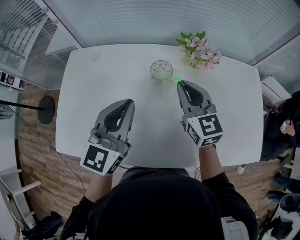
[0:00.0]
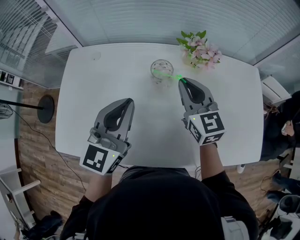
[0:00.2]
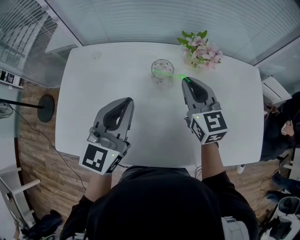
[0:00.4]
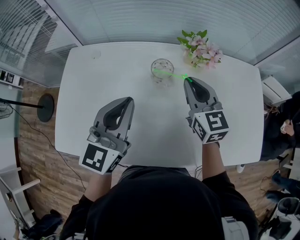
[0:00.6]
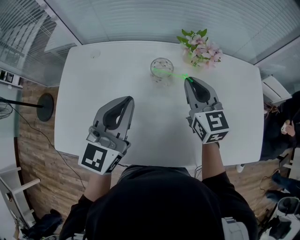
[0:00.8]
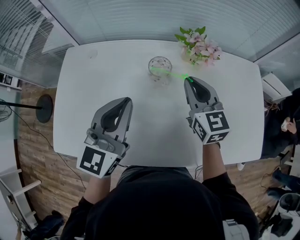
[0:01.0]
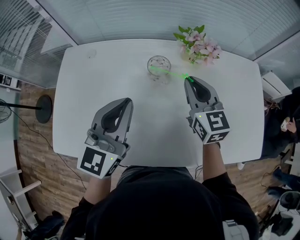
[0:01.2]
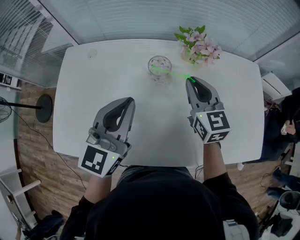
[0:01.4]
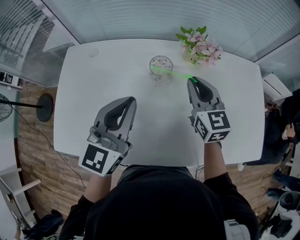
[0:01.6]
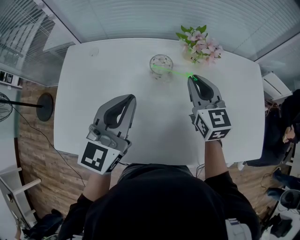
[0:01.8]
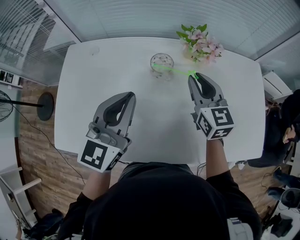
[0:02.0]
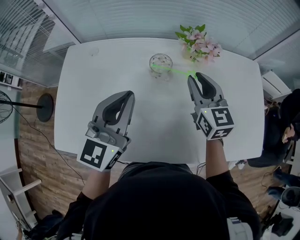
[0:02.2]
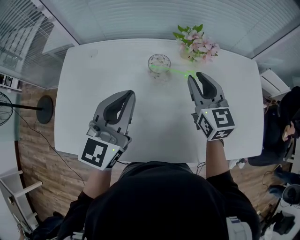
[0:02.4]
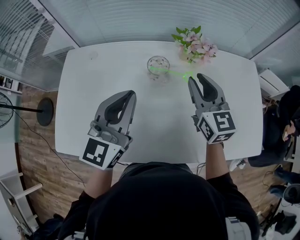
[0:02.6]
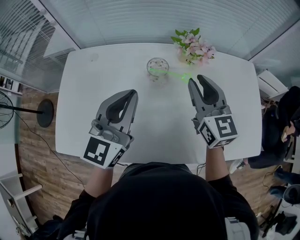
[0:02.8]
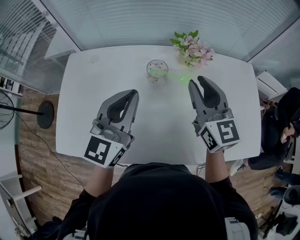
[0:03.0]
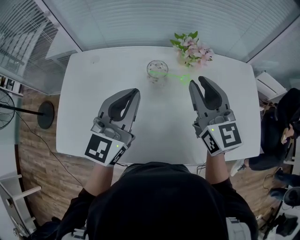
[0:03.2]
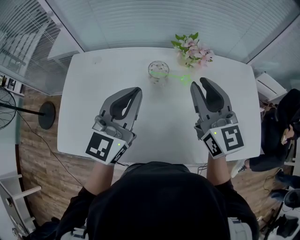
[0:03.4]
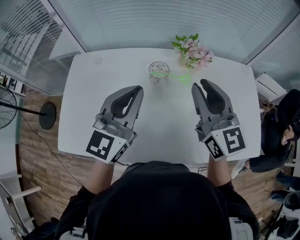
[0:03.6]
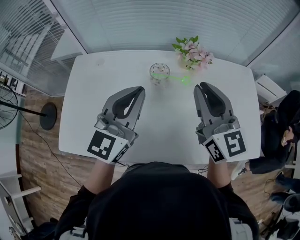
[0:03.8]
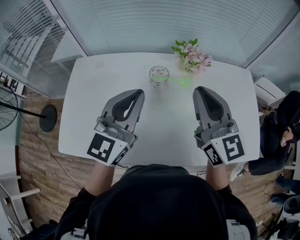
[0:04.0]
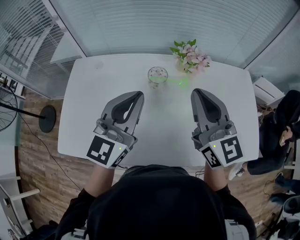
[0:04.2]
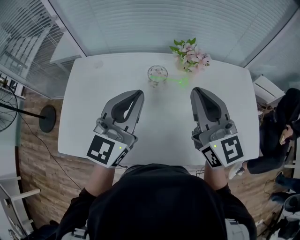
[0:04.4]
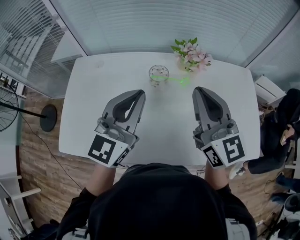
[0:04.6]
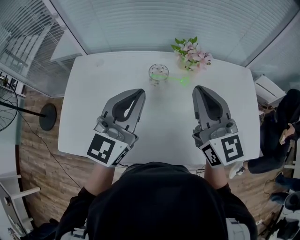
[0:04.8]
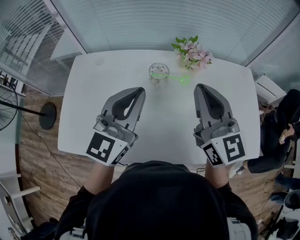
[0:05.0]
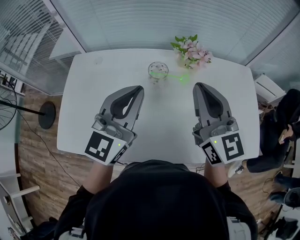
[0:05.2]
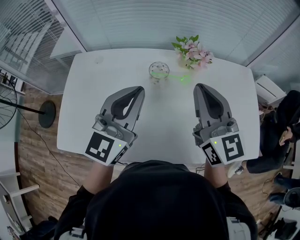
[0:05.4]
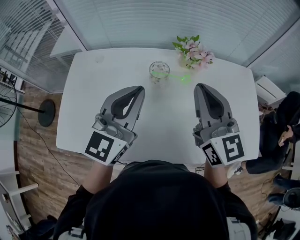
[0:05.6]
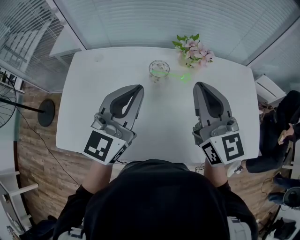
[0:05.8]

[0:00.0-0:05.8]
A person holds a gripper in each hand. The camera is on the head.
0:00.0 to 0:01.4: There are only small adjustments of the grippers.
0:01.4 to 0:02.8: The right gripper heads upward, covering some 5 cm.
0:02.8 to 0:04.4: The right gripper goes some 10 cm upward and backward, and closes its fingers.
0:04.4 to 0:05.8: The two grippers keep their place.

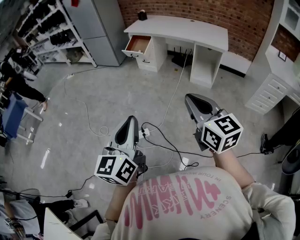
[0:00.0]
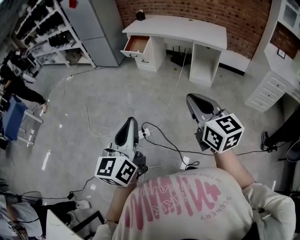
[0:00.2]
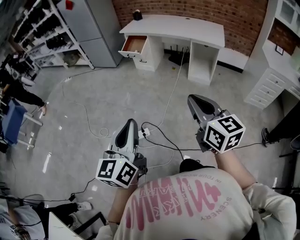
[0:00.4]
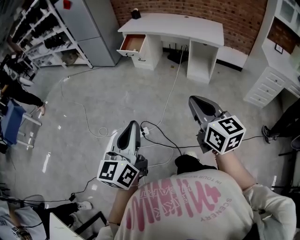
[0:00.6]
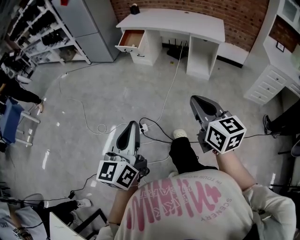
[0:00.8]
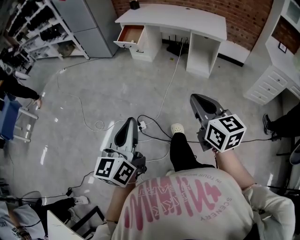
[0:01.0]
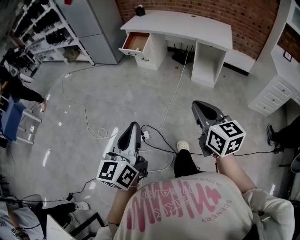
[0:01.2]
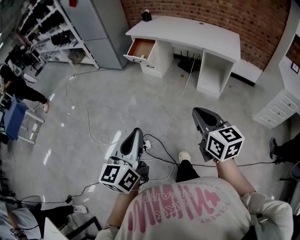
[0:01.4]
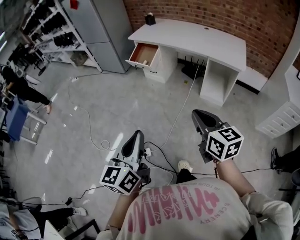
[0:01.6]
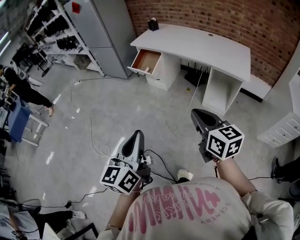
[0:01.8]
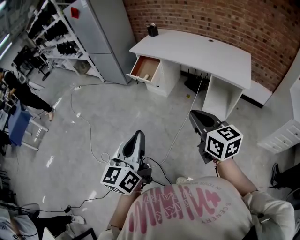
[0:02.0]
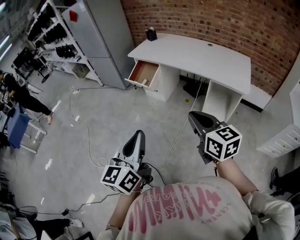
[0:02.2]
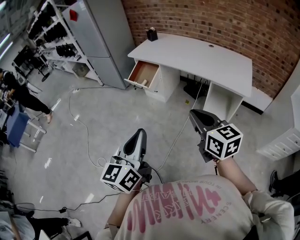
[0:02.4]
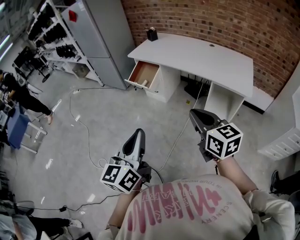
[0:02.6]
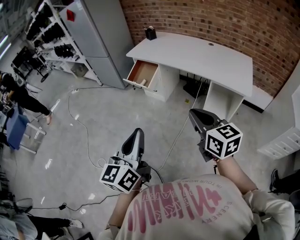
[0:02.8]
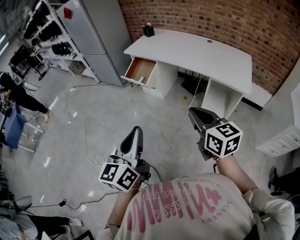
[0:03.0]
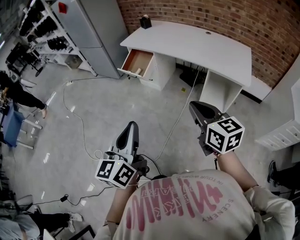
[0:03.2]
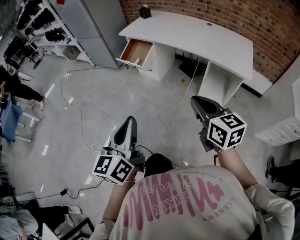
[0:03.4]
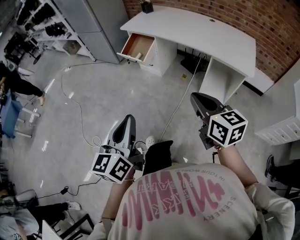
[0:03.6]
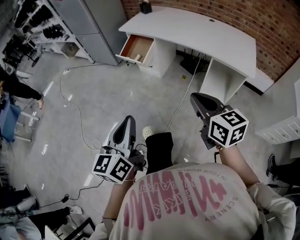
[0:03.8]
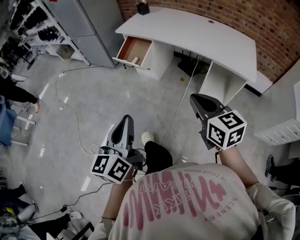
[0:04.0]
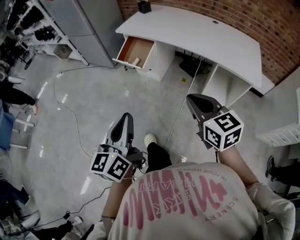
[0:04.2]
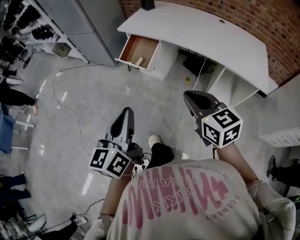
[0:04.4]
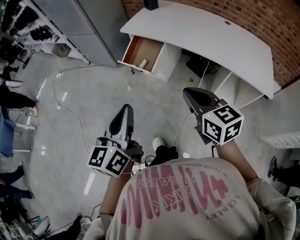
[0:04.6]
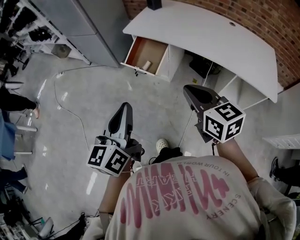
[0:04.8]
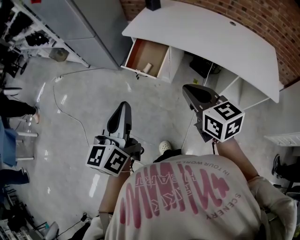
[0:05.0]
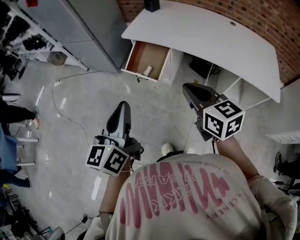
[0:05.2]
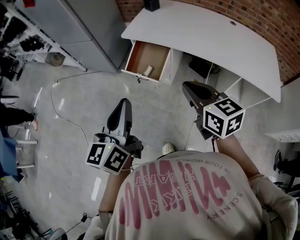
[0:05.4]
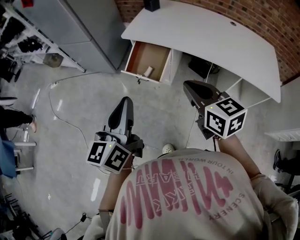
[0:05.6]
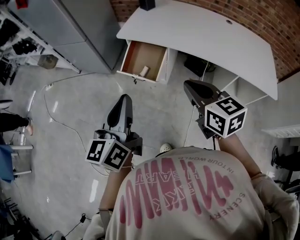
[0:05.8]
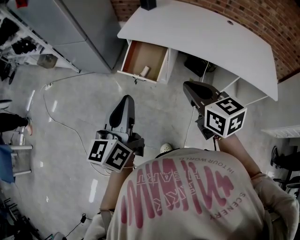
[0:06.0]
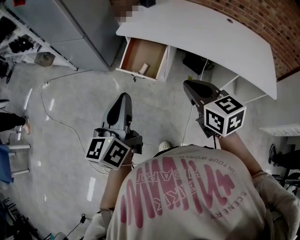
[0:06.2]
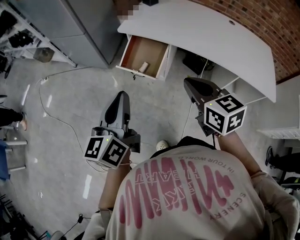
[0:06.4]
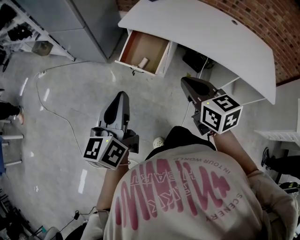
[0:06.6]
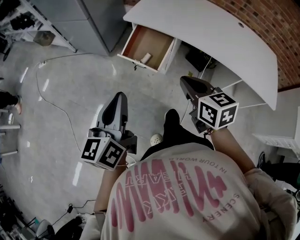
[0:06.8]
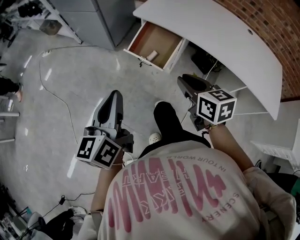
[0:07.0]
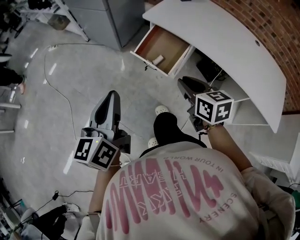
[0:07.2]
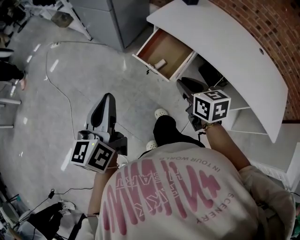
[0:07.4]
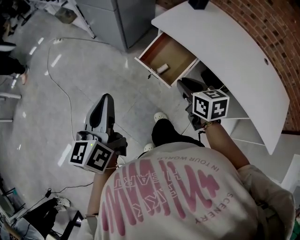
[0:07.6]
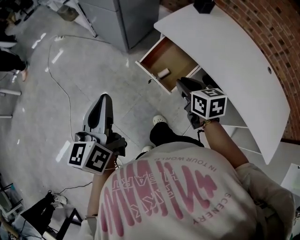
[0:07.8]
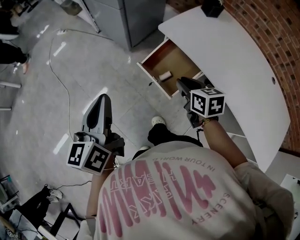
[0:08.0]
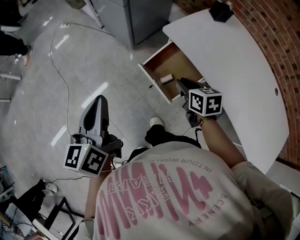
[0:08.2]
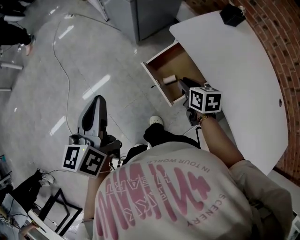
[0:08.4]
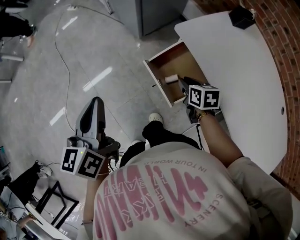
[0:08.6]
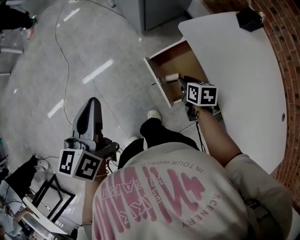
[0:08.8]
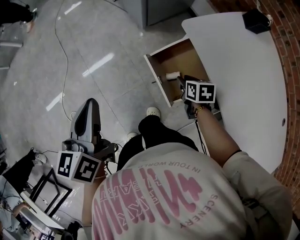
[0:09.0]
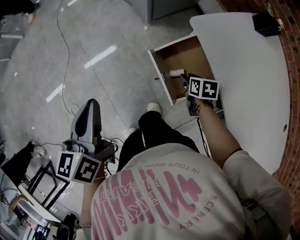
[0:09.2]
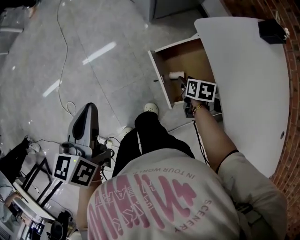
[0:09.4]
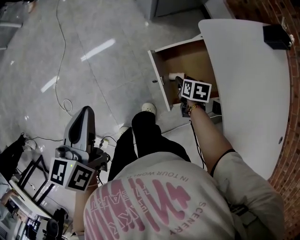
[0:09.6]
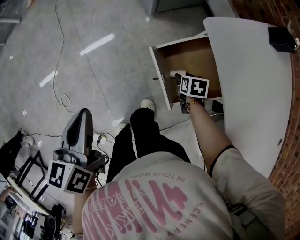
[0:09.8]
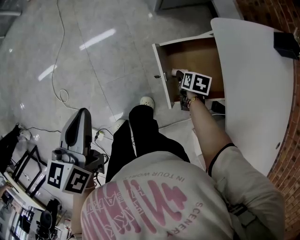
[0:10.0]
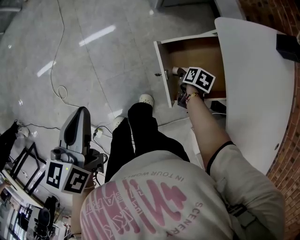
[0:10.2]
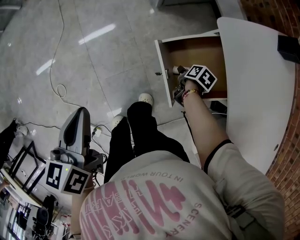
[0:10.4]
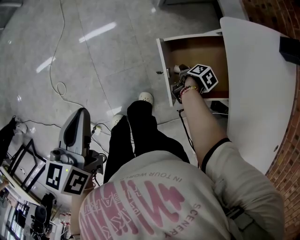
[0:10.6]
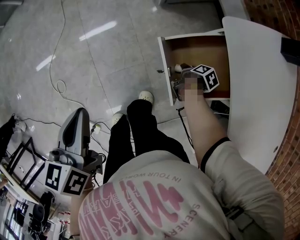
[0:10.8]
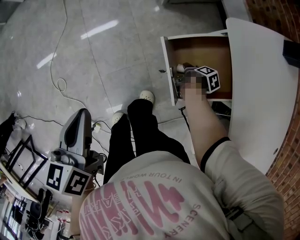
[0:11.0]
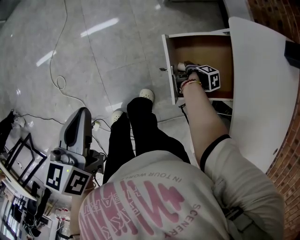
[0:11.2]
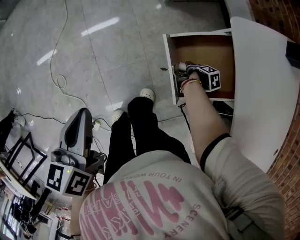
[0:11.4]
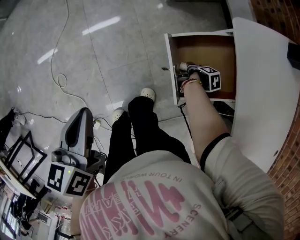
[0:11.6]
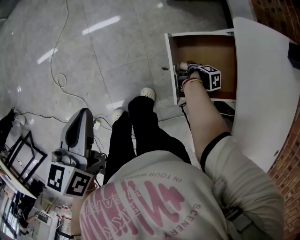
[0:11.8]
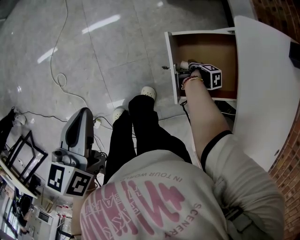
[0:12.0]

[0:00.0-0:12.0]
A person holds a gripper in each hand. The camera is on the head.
0:00.0 to 0:01.6: The grippers both shift forward by roughly 20 cm.
0:01.6 to 0:03.0: The right gripper is displaced forward by approximately 20 cm. The left gripper travels forward and to the right by about 20 cm.
0:03.0 to 0:04.4: Both grippers move forward and to the left, some 20 cm.
0:04.4 to 0:06.0: The grippers both shift forward and to the left by about 25 cm.
0:06.0 to 0:07.6: The left gripper travels to the left and forward by about 10 cm, and rotates some 30 degrees; the right gripper goes roughly 20 cm forward and downward.
0:07.6 to 0:09.0: The right gripper shifts some 30 cm downward and forward, and changes its angle by approximately 30 degrees. Meanwhile the left gripper is displaced forward and downward by approximately 15 cm, and changes its angle by roughly 30 degrees.
0:09.0 to 0:10.4: The right gripper shifts approximately 15 cm downward, swivels approximately 30 degrees, and opens its fingers. The left gripper heads downward, covering roughly 10 cm.
0:10.4 to 0:12.0: The right gripper changes place by roughly 5 cm, and turns by roughly 40 degrees.

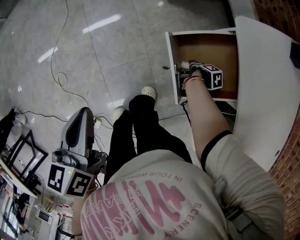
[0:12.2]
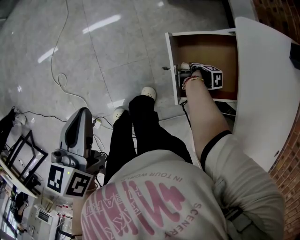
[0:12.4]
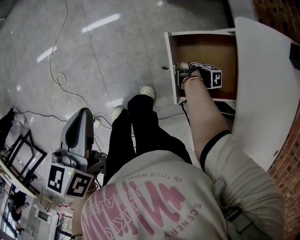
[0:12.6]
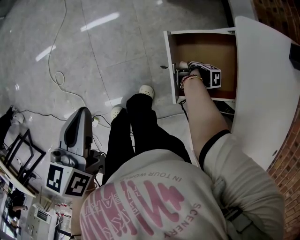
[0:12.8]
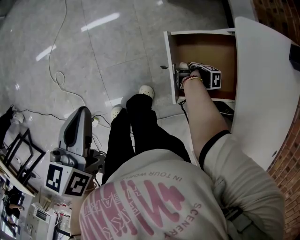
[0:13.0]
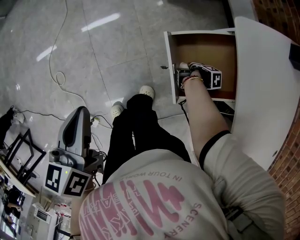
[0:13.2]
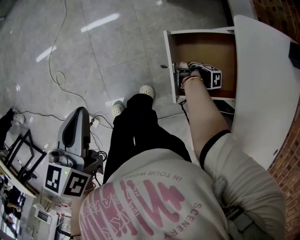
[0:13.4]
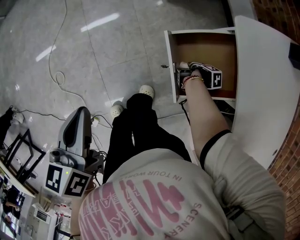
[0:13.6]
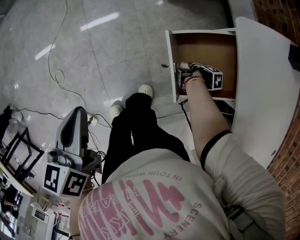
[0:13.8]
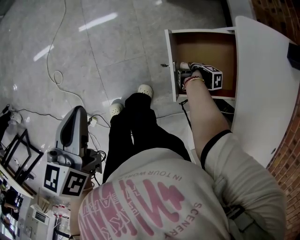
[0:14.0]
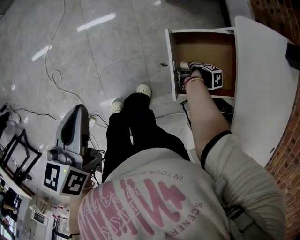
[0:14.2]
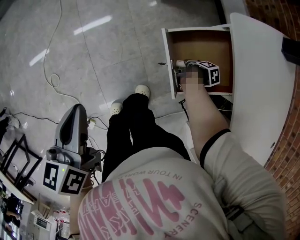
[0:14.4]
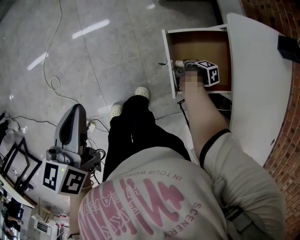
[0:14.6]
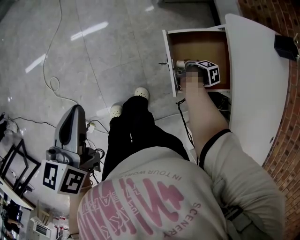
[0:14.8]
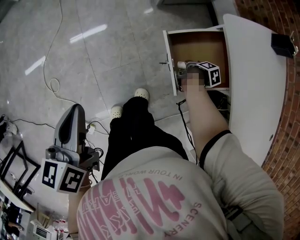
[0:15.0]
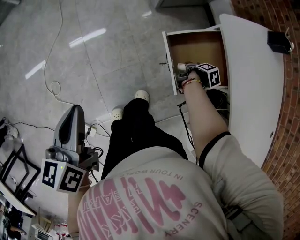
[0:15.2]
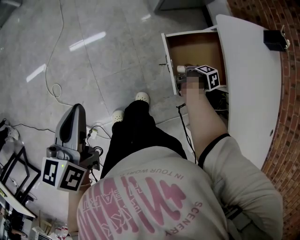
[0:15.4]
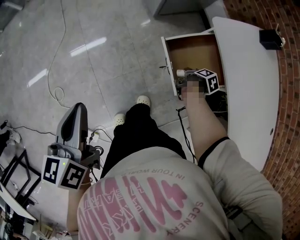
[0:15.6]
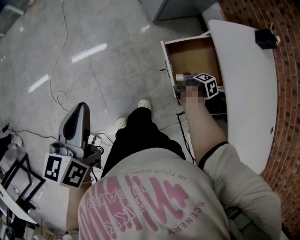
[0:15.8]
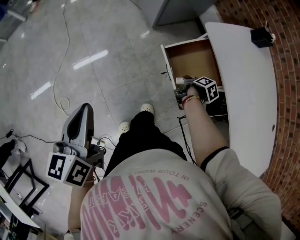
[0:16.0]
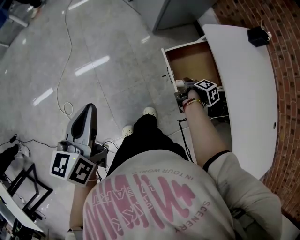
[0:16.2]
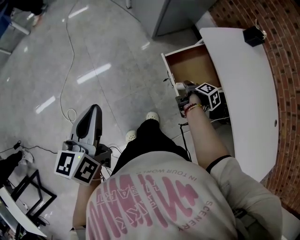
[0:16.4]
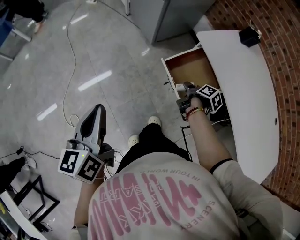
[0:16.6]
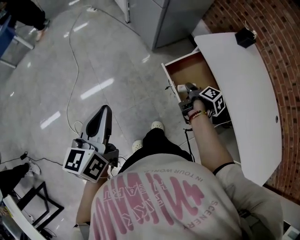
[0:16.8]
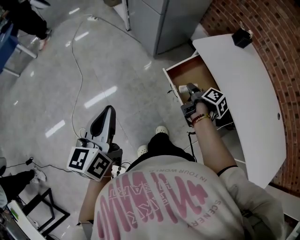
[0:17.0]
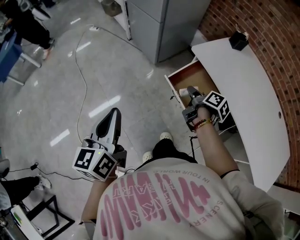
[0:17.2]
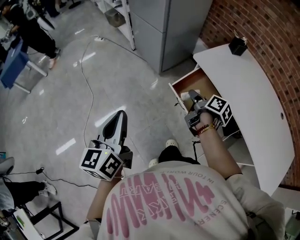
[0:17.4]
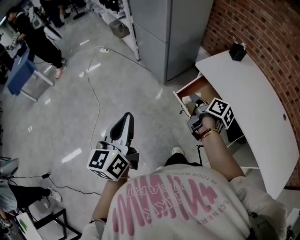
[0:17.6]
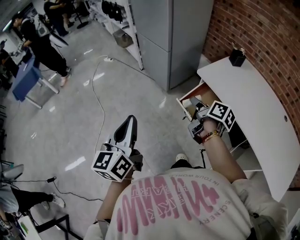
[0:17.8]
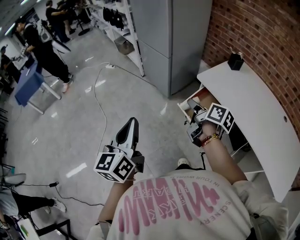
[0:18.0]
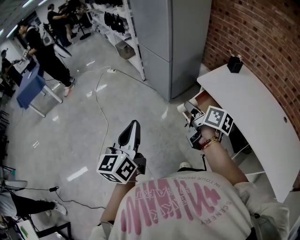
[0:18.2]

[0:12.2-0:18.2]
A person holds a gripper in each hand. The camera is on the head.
0:12.2 to 0:13.8: The right gripper closes up.
0:13.8 to 0:15.2: The left gripper ends up roughly 5 cm from where it was. Meanwhile the right gripper shifts approximately 10 cm upward.
0:15.2 to 0:16.6: The left gripper heads upward, covering some 10 cm, while the right gripper is displaced upward by roughly 15 cm, and rotates about 20 degrees.
0:16.6 to 0:18.2: The left gripper is displaced upward by approximately 15 cm; the right gripper moves upward and to the left, some 30 cm, and tips its fingers upward by approximately 30 degrees.
